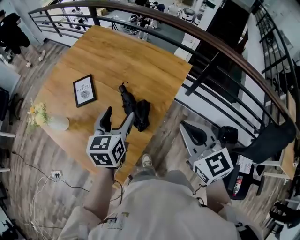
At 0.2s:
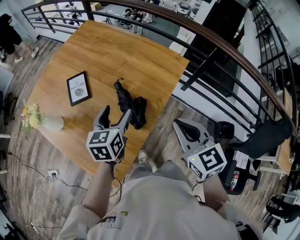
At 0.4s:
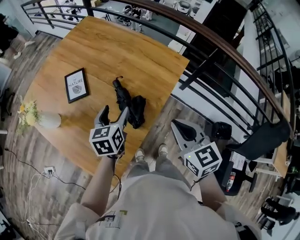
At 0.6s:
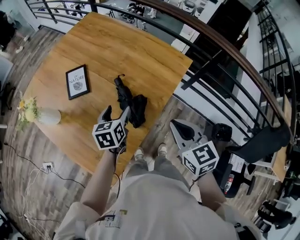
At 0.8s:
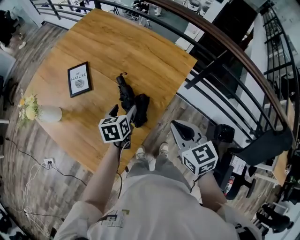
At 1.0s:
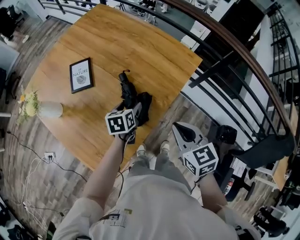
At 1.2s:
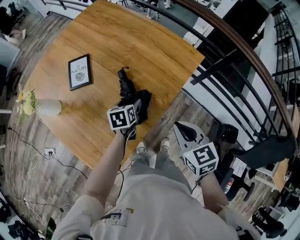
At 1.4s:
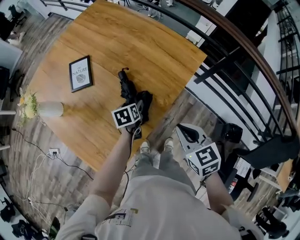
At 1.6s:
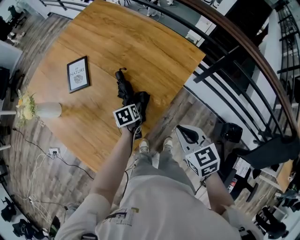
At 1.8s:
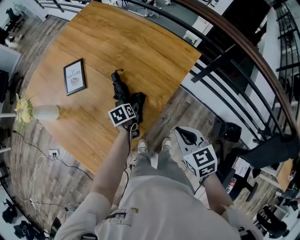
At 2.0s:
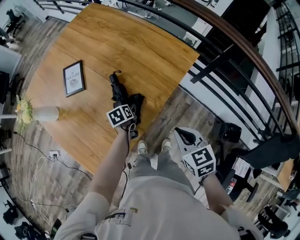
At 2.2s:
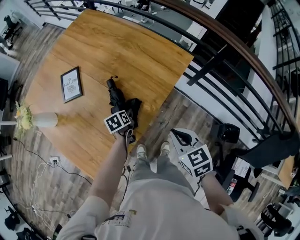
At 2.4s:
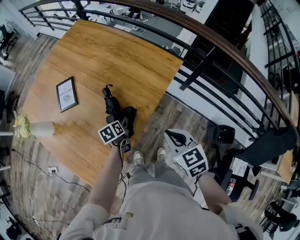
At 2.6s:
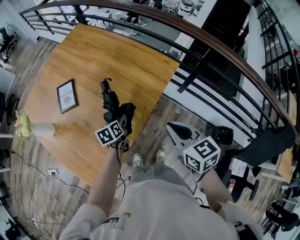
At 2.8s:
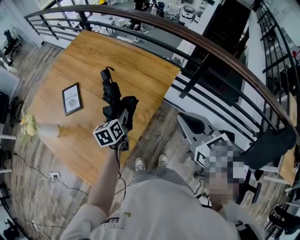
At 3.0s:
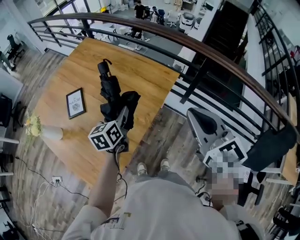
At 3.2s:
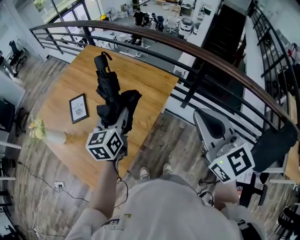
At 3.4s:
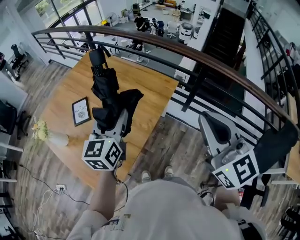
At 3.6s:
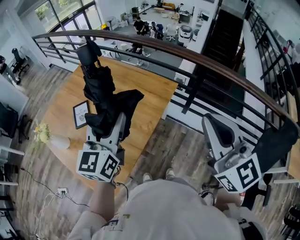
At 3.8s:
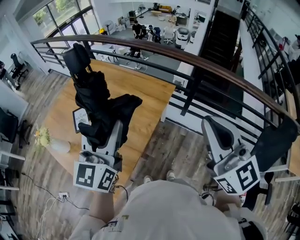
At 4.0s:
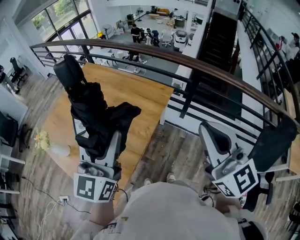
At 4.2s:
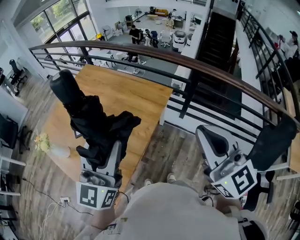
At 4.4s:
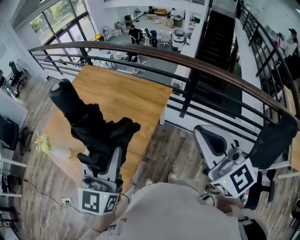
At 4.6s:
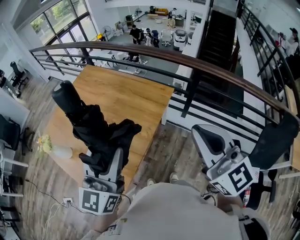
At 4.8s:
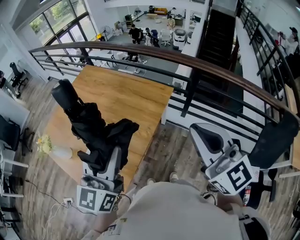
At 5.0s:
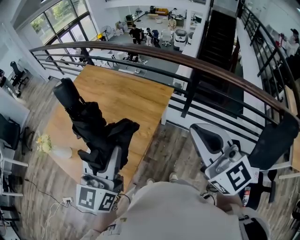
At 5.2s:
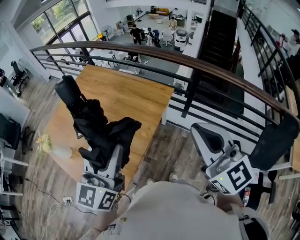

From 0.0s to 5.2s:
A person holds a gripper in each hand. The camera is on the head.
From 0.0s to 1.8s: The left gripper heads downward, covering some 30 cm, and points its fingers some 40 degrees further downward; the right gripper shifts about 20 cm downward, and turns by about 20 degrees.
From 1.8s to 3.4s: The grippers both shift upward by some 40 cm. The right gripper points its fingers roughly 40 degrees further upward, while the left gripper points its fingers approximately 50 degrees further upward.
From 3.4s to 5.2s: The left gripper goes some 15 cm backward and upward.

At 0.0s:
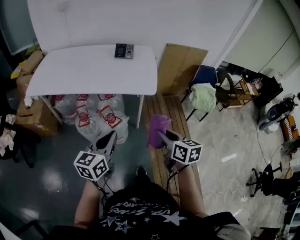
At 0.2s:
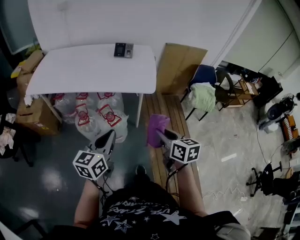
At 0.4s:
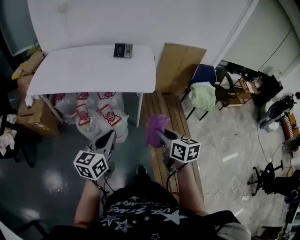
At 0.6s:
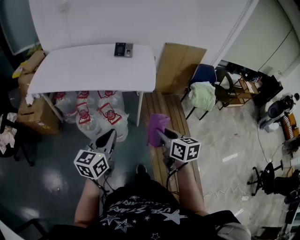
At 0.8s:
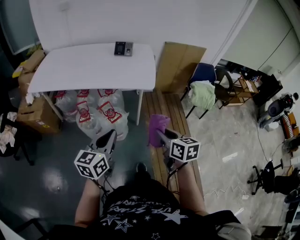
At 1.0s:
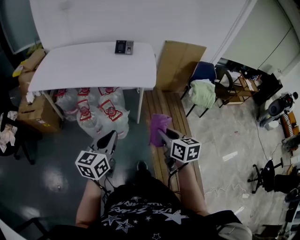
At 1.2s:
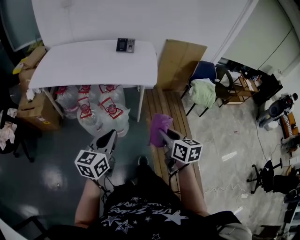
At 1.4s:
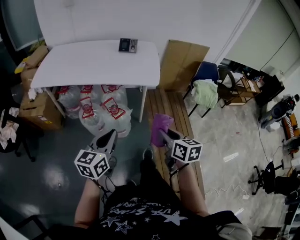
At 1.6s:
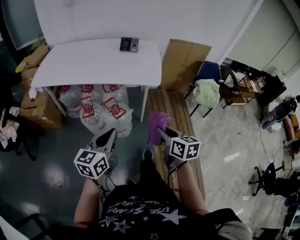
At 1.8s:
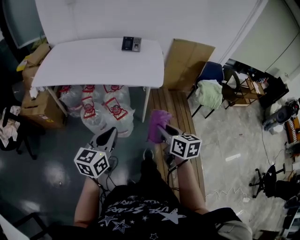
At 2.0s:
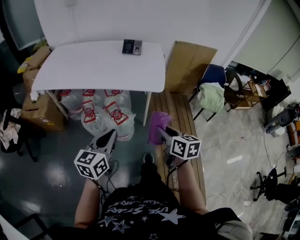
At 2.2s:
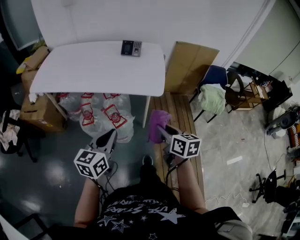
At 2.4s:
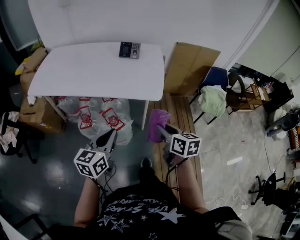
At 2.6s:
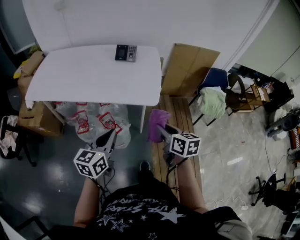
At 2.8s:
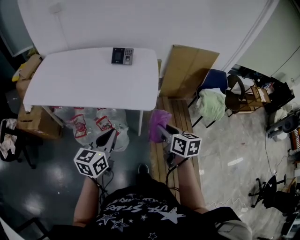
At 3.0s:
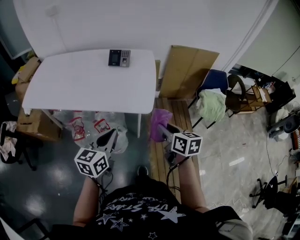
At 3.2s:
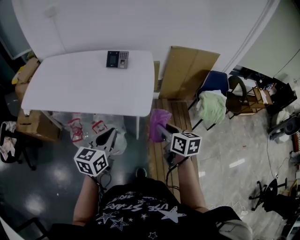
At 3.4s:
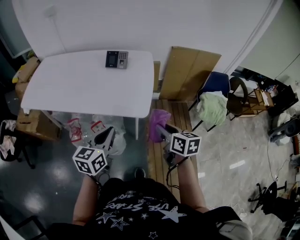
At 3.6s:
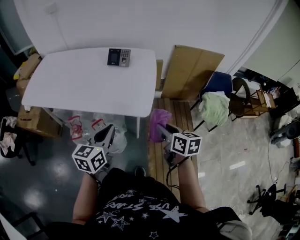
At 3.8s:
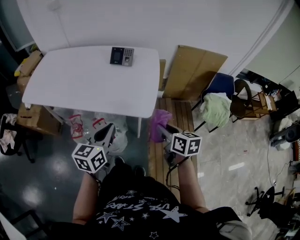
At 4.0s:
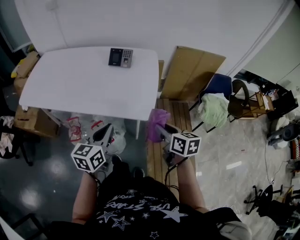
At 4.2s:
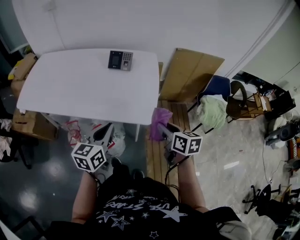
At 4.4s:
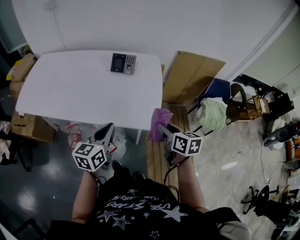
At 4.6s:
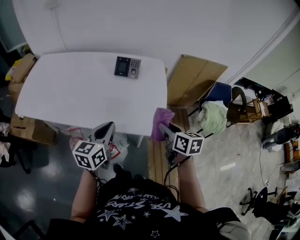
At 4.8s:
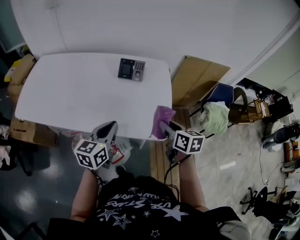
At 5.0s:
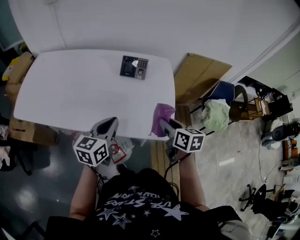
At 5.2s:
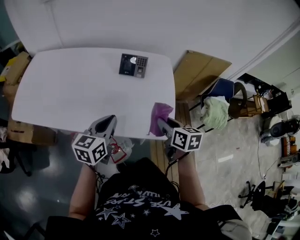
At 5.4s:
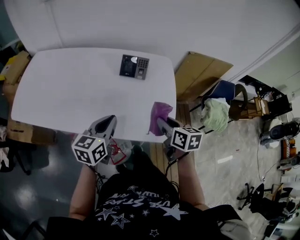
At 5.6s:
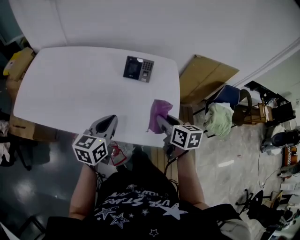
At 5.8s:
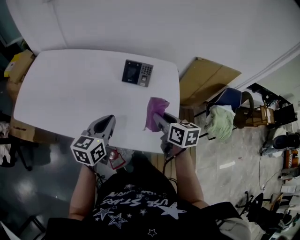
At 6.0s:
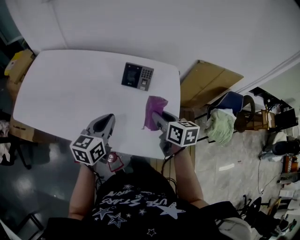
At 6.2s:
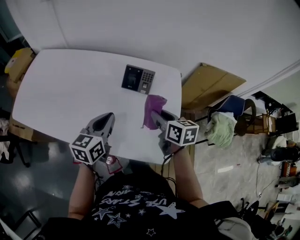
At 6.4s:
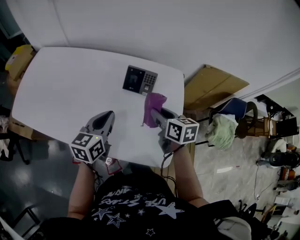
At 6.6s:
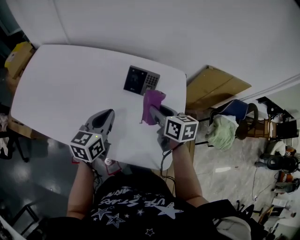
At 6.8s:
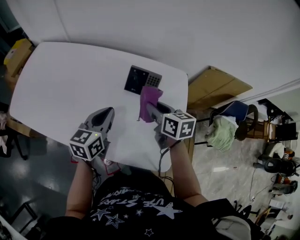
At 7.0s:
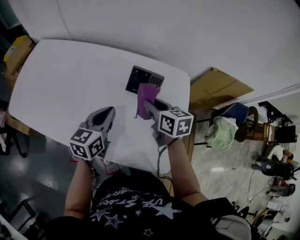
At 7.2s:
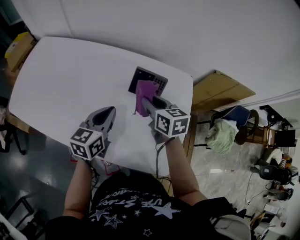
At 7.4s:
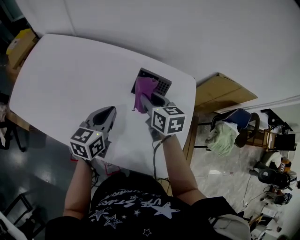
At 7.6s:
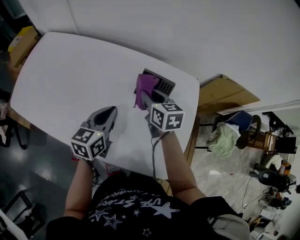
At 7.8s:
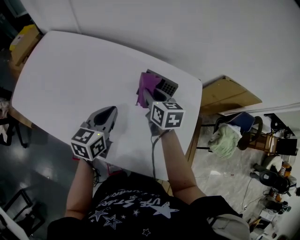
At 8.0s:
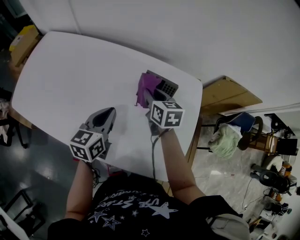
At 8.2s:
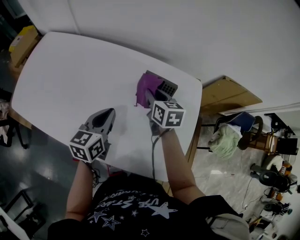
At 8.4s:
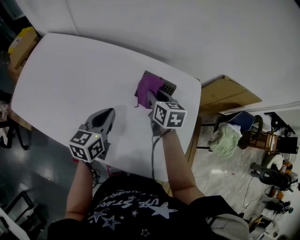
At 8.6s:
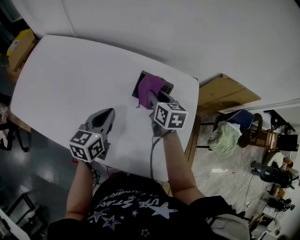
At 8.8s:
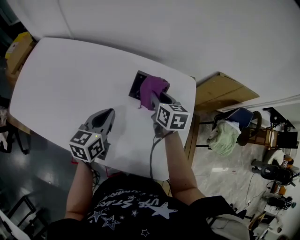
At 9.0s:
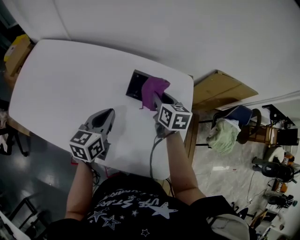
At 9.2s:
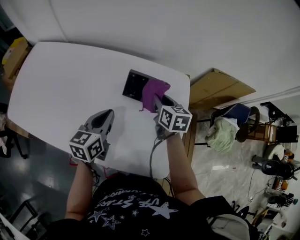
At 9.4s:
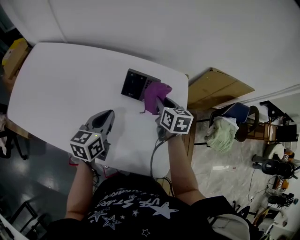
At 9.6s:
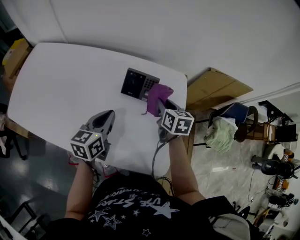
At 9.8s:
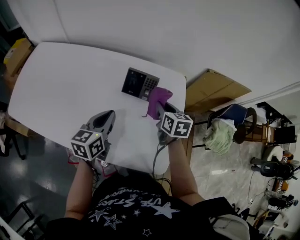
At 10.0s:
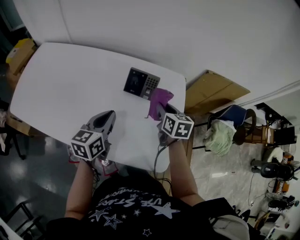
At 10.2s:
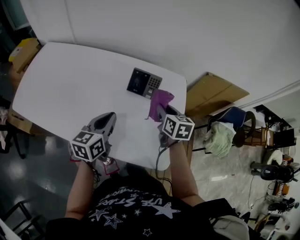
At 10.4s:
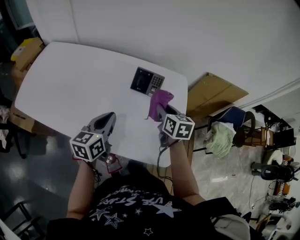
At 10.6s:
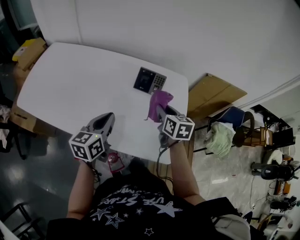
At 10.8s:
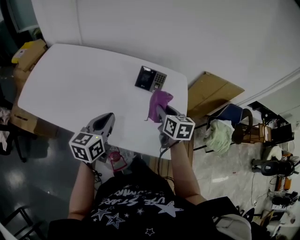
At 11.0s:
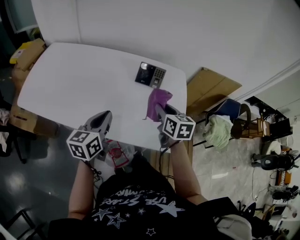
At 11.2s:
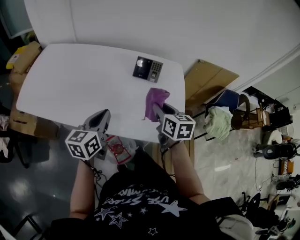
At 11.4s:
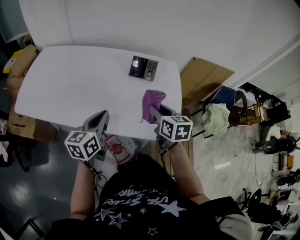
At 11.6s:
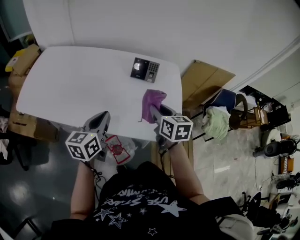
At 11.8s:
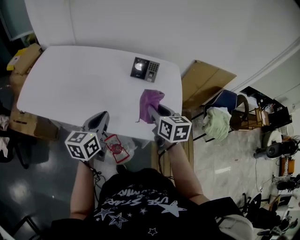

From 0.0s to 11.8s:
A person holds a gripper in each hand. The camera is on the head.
From 0.0s to 1.4s: Both grippers travel together backward, some 5 cm.
From 1.4s to 3.0s: The left gripper heads forward and to the right, covering approximately 25 cm, while the right gripper heads forward, covering approximately 25 cm.
From 3.0s to 4.4s: The grippers both shift forward by some 15 cm.
From 4.4s to 6.0s: The right gripper moves forward and to the left, approximately 25 cm. Meanwhile the left gripper heads forward, covering roughly 20 cm.
From 6.0s to 7.4s: The left gripper heads forward, covering some 10 cm, while the right gripper moves forward and to the left, some 20 cm.
From 7.4s to 8.8s: The right gripper moves to the right, approximately 5 cm.
From 8.8s to 10.4s: The two grippers go some 10 cm backward.
From 10.4s to 11.8s: The left gripper shifts some 10 cm backward and to the left; the right gripper moves backward, roughly 15 cm.

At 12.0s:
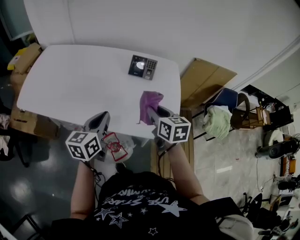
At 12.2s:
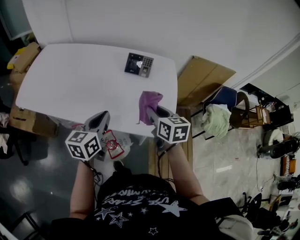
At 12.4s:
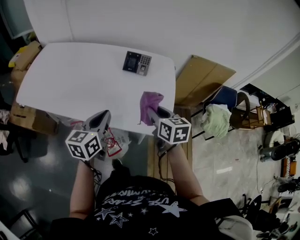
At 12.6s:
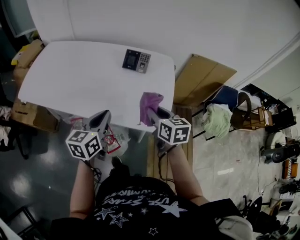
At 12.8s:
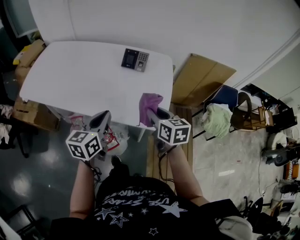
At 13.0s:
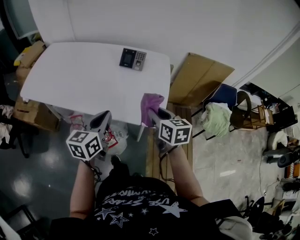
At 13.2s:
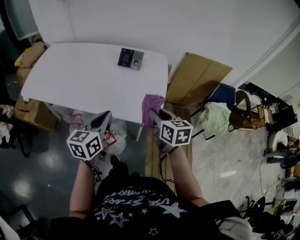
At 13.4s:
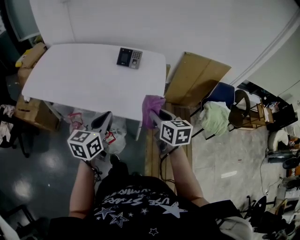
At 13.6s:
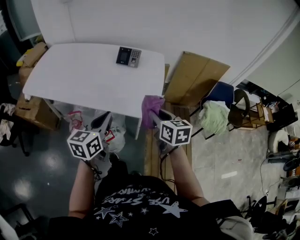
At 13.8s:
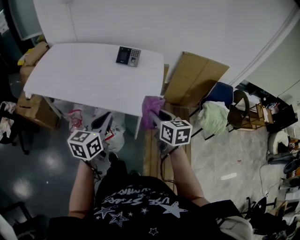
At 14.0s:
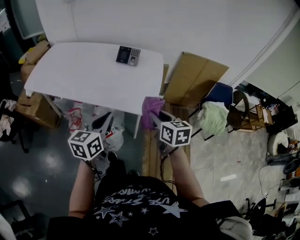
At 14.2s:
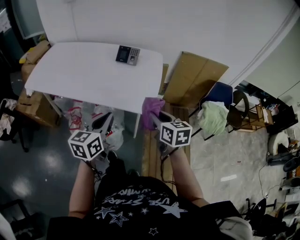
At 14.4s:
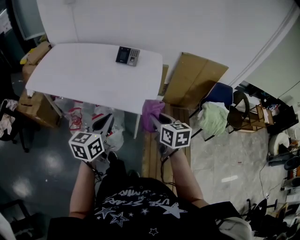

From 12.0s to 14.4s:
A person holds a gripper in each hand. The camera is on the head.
From 12.0s to 13.2s: Both grippers move backward and to the right, some 15 cm.
From 13.2s to 14.4s: The left gripper heads backward and to the right, covering some 10 cm. Meanwhile the right gripper shifts approximately 10 cm backward.

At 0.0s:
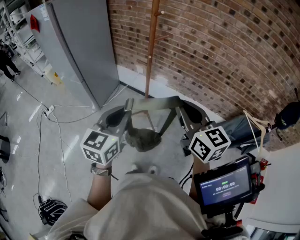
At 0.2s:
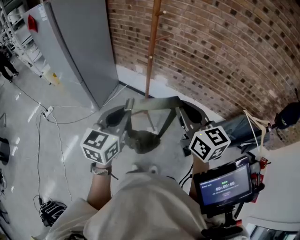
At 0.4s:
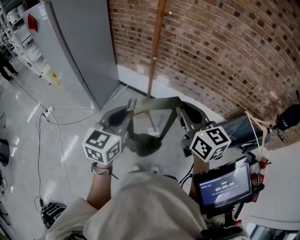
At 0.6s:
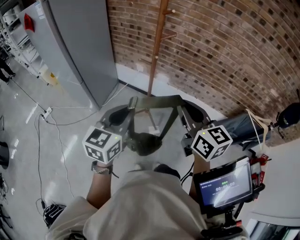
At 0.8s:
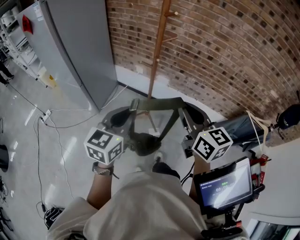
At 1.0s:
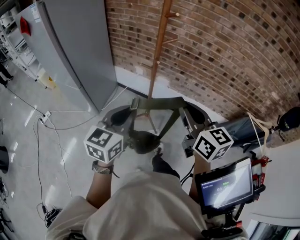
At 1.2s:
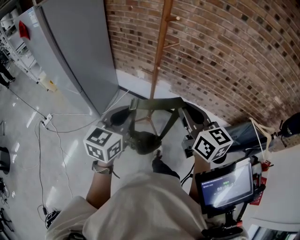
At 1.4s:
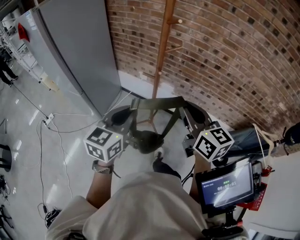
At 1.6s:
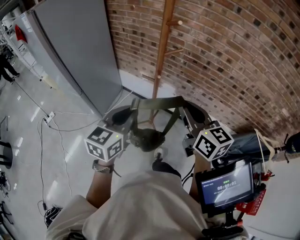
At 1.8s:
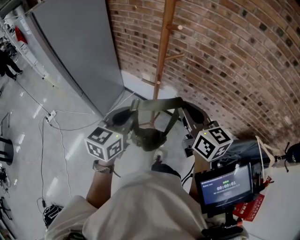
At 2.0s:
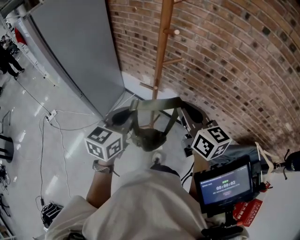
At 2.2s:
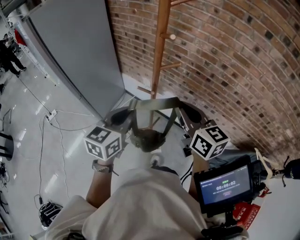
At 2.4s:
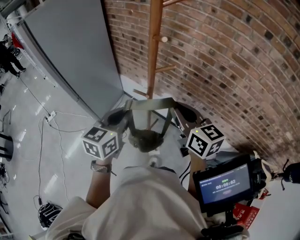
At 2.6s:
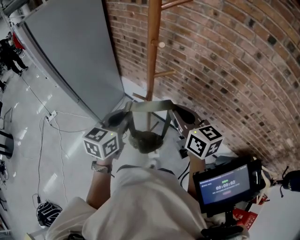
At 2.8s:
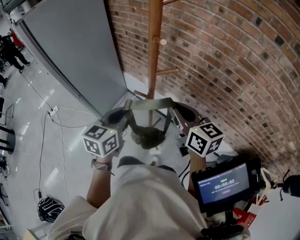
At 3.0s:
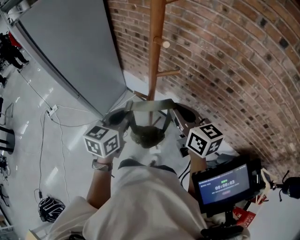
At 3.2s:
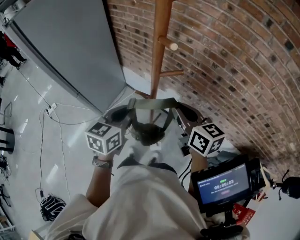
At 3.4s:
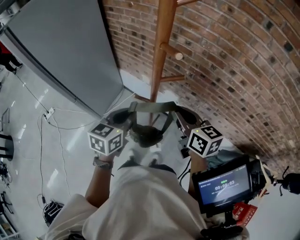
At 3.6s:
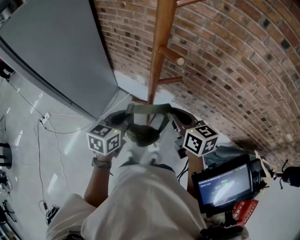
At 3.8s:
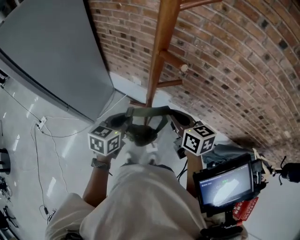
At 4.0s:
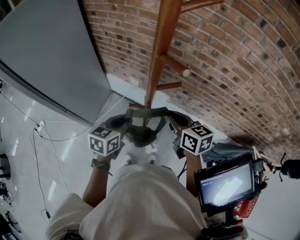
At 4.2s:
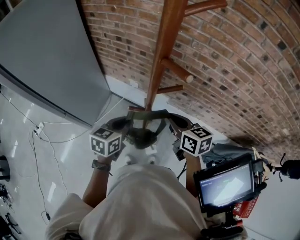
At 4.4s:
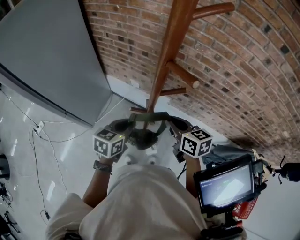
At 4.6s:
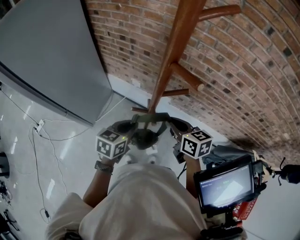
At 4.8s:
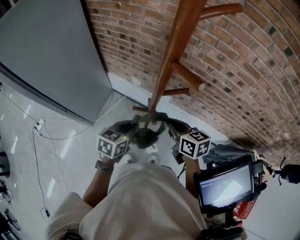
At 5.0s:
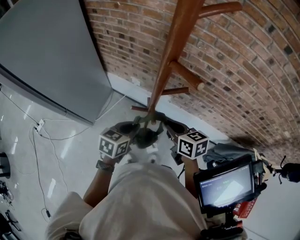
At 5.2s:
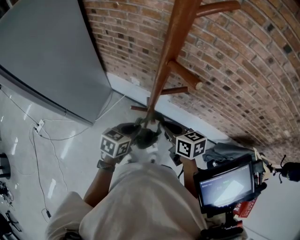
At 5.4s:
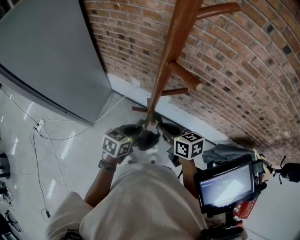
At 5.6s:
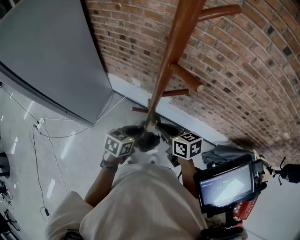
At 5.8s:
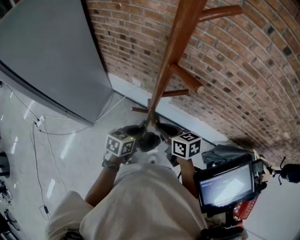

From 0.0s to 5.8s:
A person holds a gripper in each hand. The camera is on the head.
From 0.0s to 1.4s: The two grippers go approximately 15 cm forward.
From 1.4s to 2.8s: Both grippers move forward, about 15 cm.
From 2.8s to 4.4s: Both grippers move downward and forward, about 10 cm. The left gripper rotates about 20 degrees.
From 4.4s to 5.8s: The left gripper goes approximately 5 cm downward; the right gripper shifts by roughly 5 cm.
